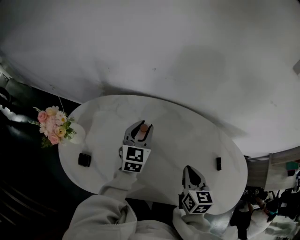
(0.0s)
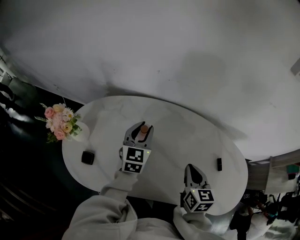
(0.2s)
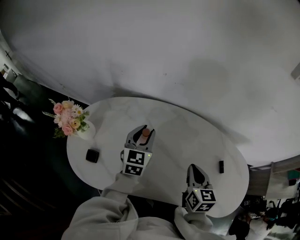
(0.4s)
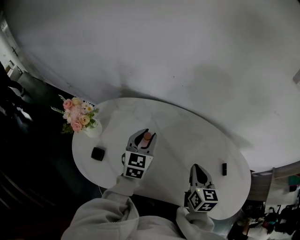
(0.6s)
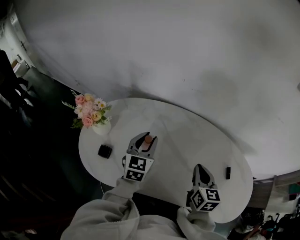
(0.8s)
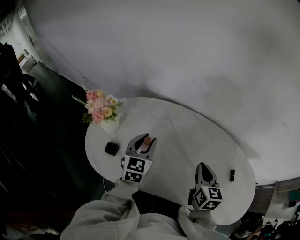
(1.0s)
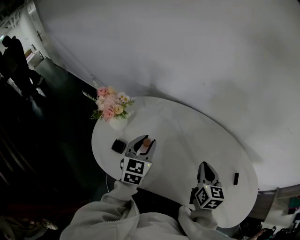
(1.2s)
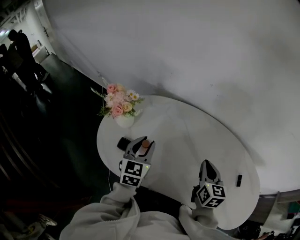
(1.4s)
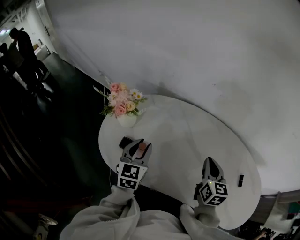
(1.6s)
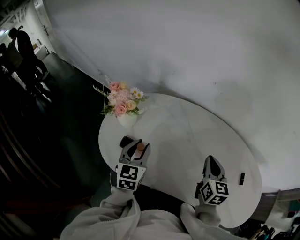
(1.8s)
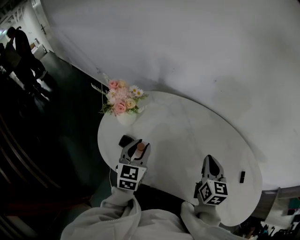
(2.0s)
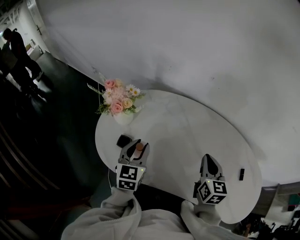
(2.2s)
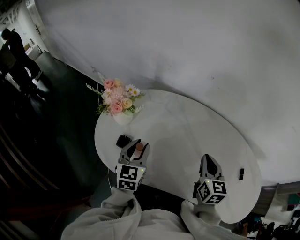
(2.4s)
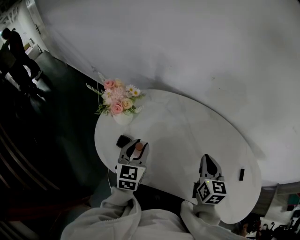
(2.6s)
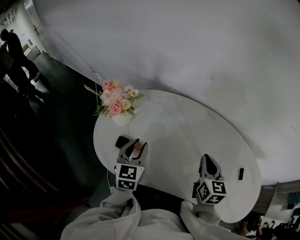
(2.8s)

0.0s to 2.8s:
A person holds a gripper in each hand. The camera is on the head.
0.0s to 1.4s: The right gripper heads to the left, covering roughly 10 cm. The left gripper moves to the left and backward, approximately 25 cm.
1.4s to 2.8s: The grippers move only a little.

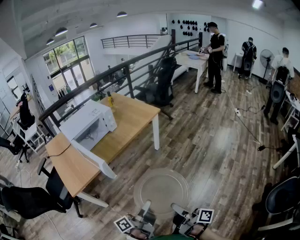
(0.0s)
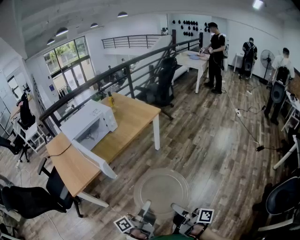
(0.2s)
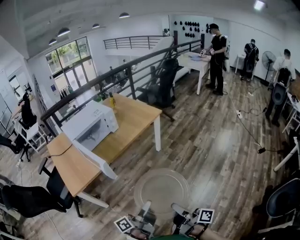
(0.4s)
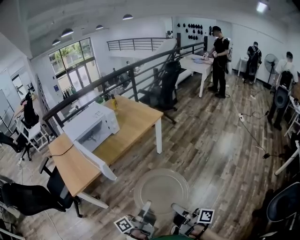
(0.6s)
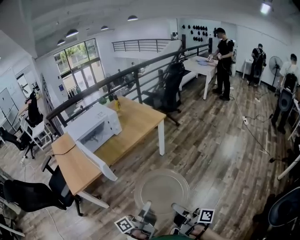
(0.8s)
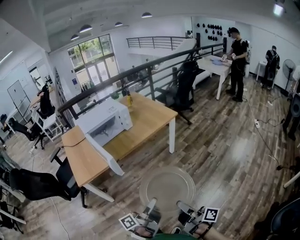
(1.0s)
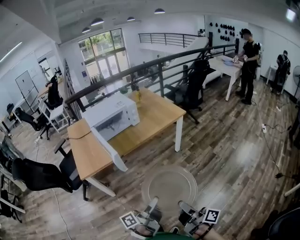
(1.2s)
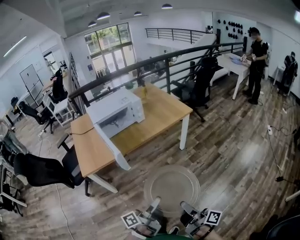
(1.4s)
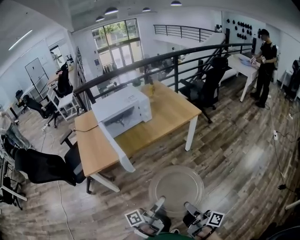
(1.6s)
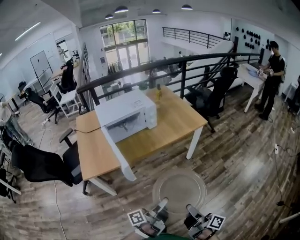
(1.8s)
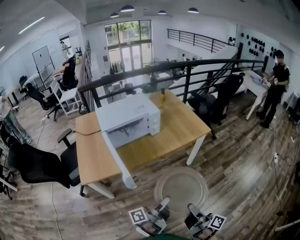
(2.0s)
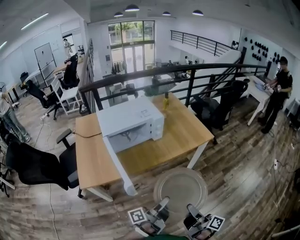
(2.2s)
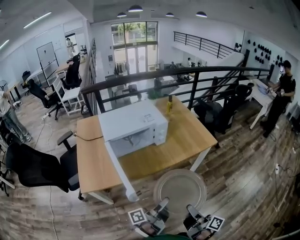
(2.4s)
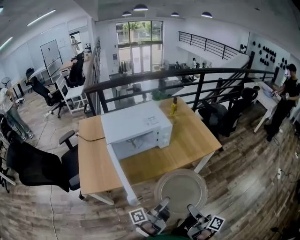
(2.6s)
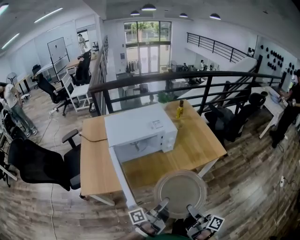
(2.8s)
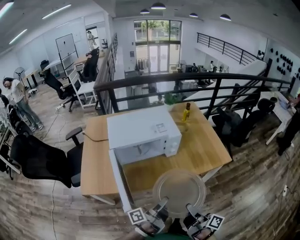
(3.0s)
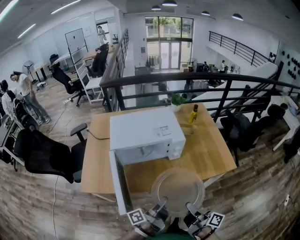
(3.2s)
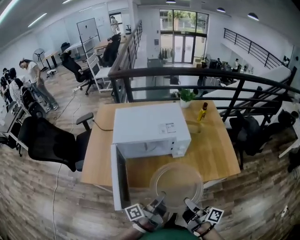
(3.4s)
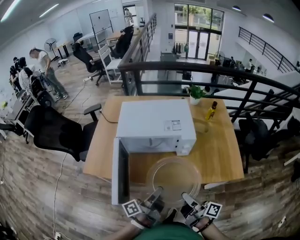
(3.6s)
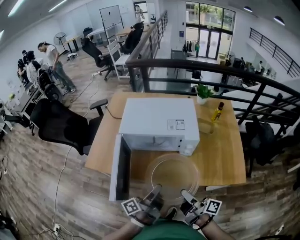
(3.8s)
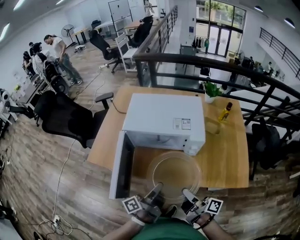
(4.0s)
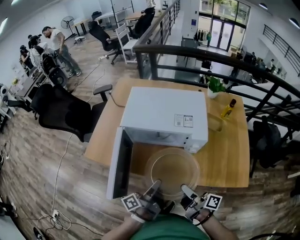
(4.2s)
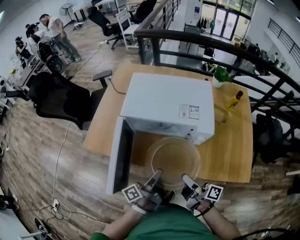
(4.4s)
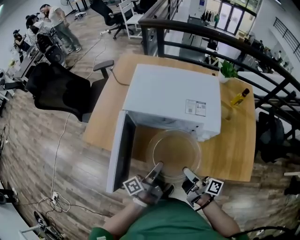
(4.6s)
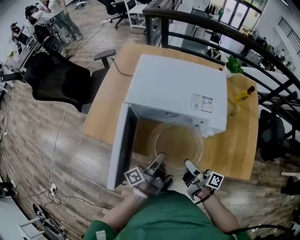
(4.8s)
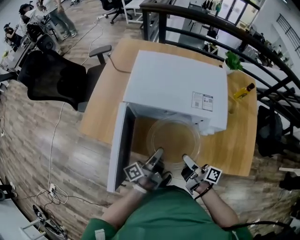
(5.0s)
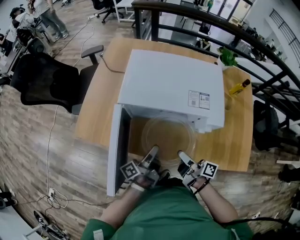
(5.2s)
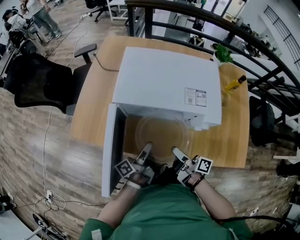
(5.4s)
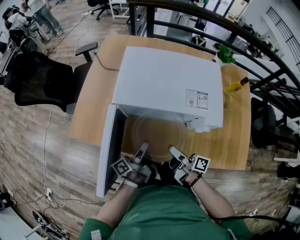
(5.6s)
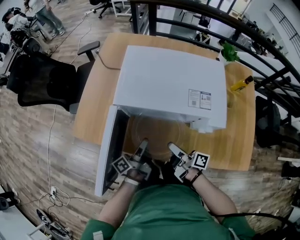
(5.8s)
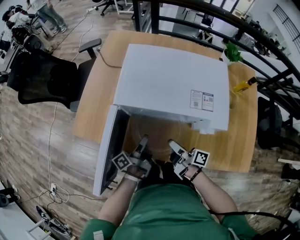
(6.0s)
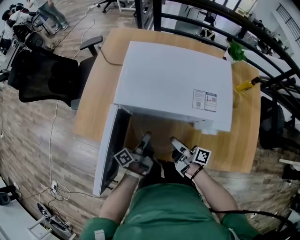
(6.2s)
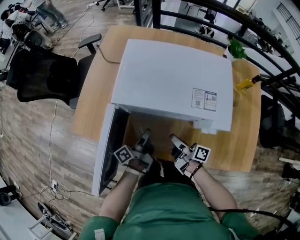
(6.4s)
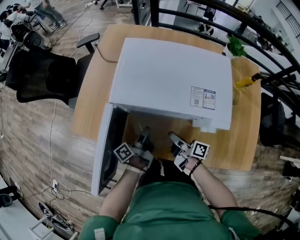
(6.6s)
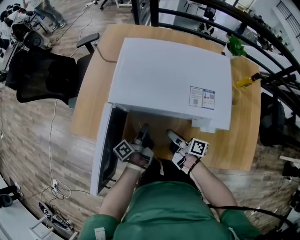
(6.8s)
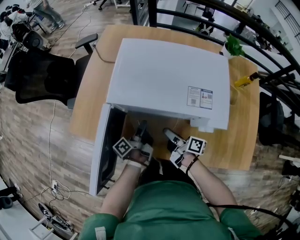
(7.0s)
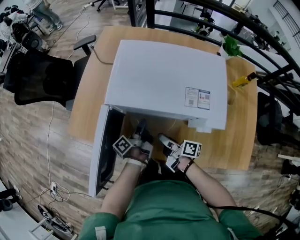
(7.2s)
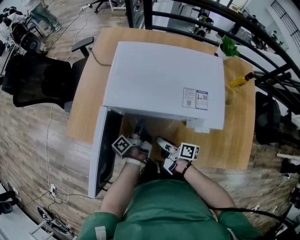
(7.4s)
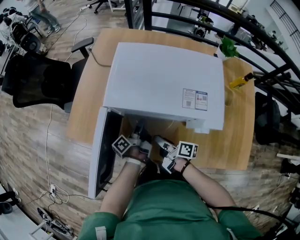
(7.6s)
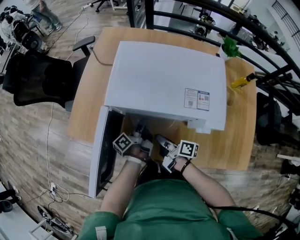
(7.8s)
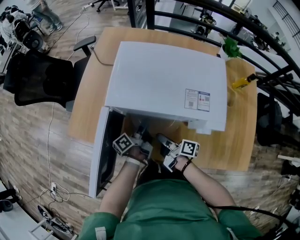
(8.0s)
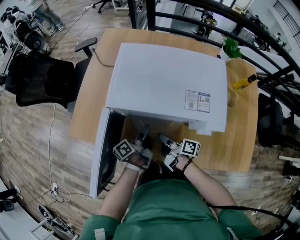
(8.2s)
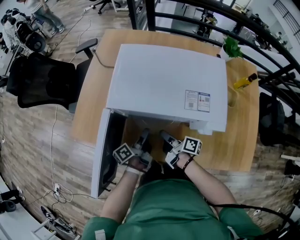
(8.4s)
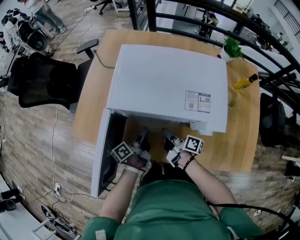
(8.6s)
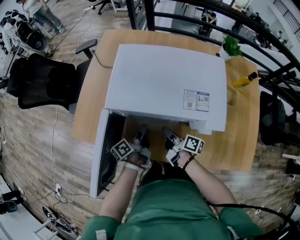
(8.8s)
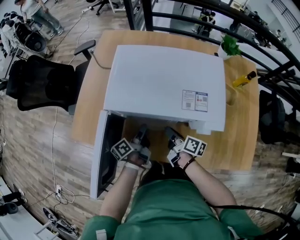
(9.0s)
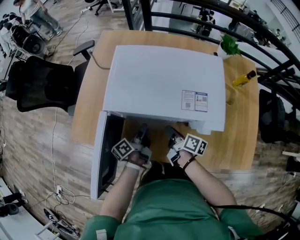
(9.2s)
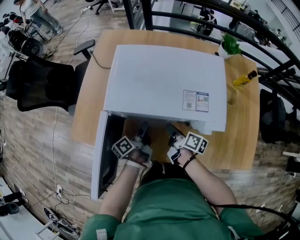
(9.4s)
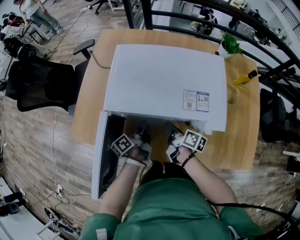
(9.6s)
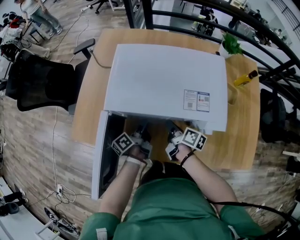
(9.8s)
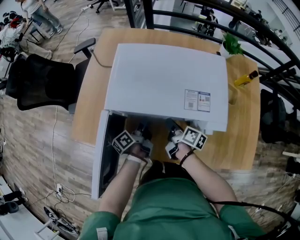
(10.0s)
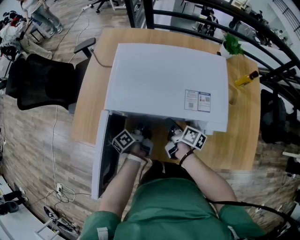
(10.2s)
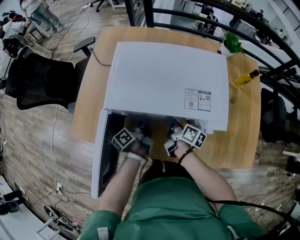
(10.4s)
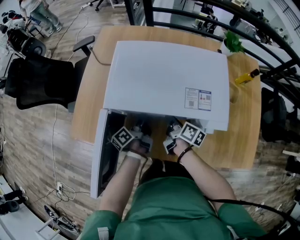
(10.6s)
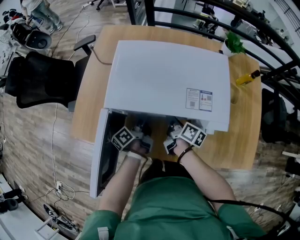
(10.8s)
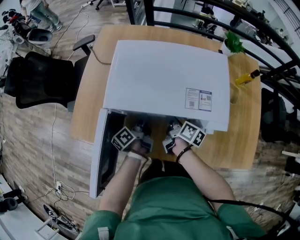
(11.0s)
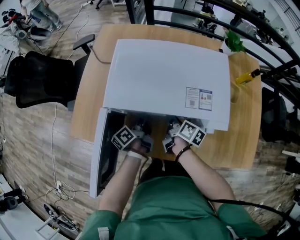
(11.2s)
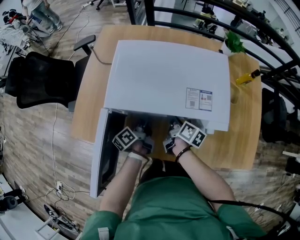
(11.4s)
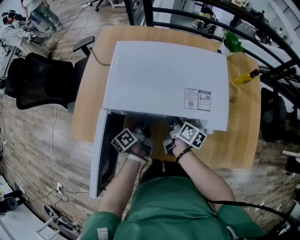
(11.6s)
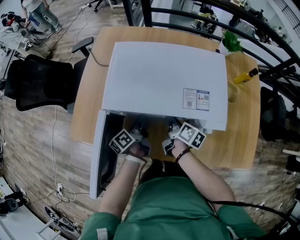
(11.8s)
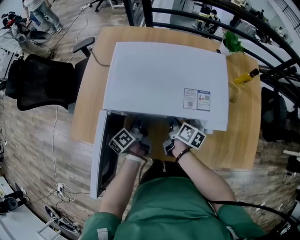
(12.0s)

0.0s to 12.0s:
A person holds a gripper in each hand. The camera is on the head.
0.0s to 1.6s: The right gripper changes place by approximately 10 cm.
1.6s to 3.0s: The right gripper shifts by approximately 40 cm.
3.0s to 4.4s: The right gripper shifts by some 25 cm, and changes its angle by some 40 degrees.
4.4s to 6.0s: The right gripper changes place by approximately 20 cm.
6.0s to 7.6s: The right gripper shifts by about 5 cm.
7.6s to 9.0s: The right gripper ends up roughly 5 cm from where it was.

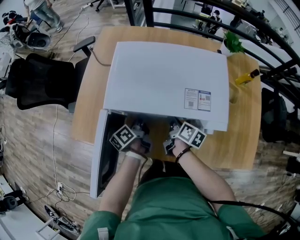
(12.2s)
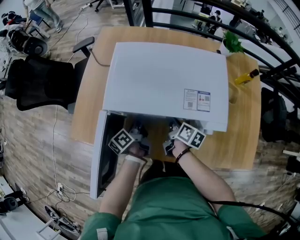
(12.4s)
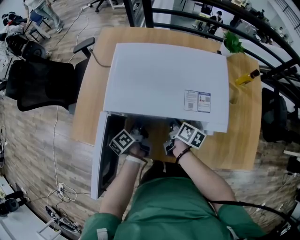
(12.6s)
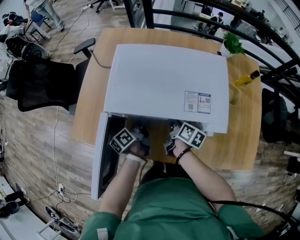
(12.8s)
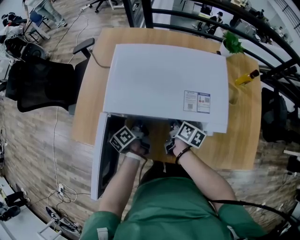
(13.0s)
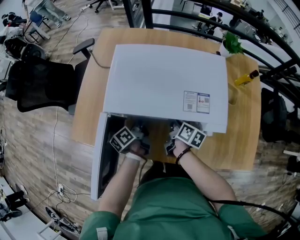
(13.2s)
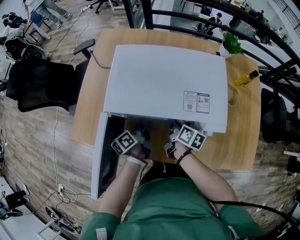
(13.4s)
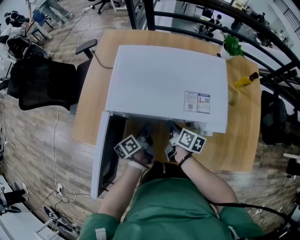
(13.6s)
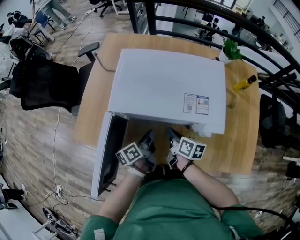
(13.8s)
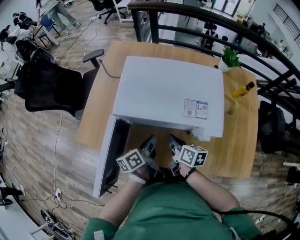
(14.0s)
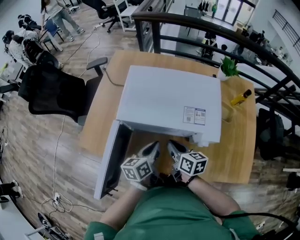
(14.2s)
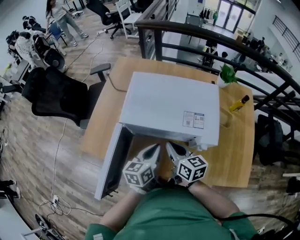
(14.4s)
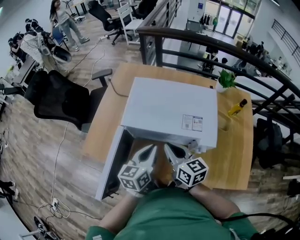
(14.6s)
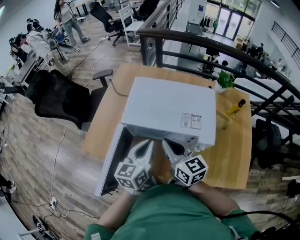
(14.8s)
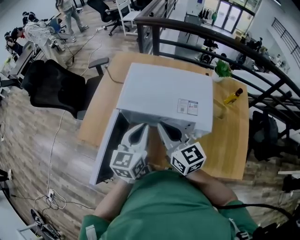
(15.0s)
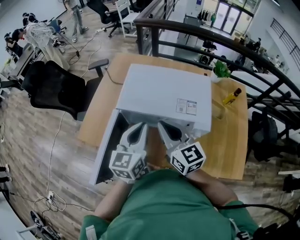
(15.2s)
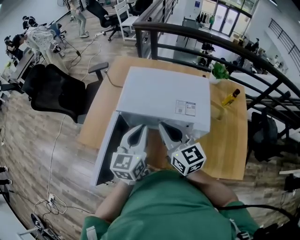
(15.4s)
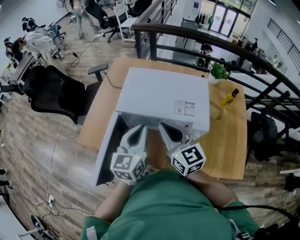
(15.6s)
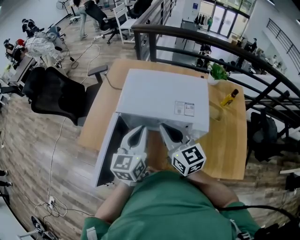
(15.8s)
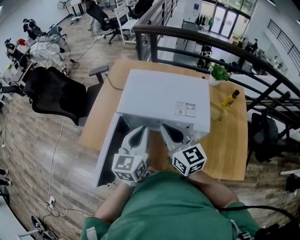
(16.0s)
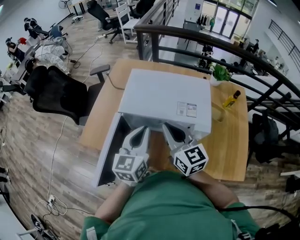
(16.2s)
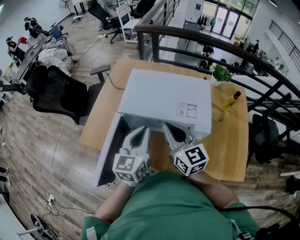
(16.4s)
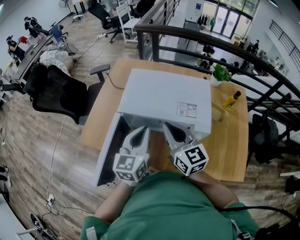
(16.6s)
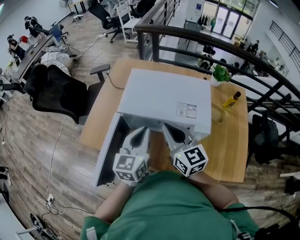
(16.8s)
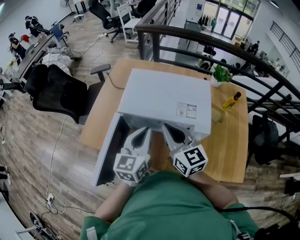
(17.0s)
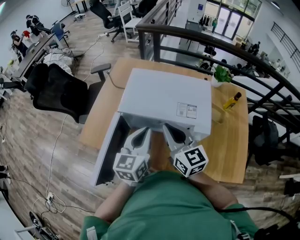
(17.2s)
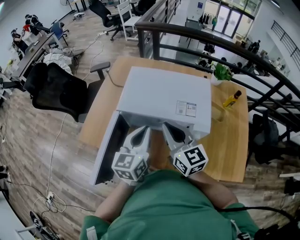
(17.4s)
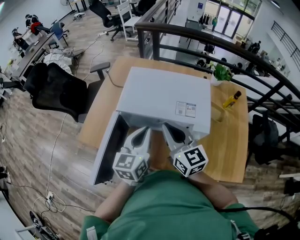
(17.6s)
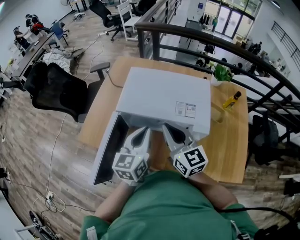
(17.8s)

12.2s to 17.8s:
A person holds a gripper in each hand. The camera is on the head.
13.6s to 15.0s: The right gripper moves upward, some 25 cm, and rolls counterclockwise, seen from behind, by roughly 60 degrees.

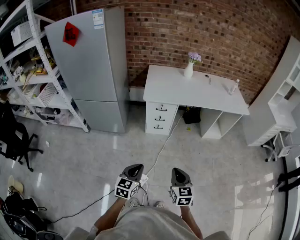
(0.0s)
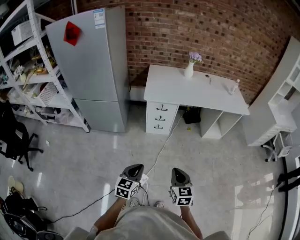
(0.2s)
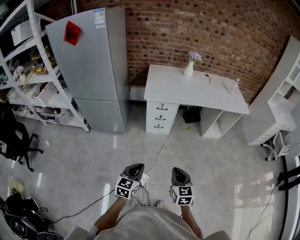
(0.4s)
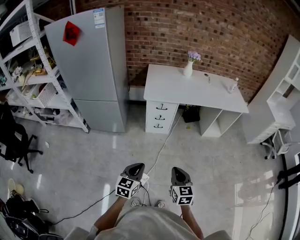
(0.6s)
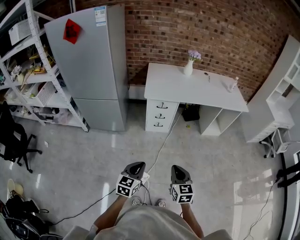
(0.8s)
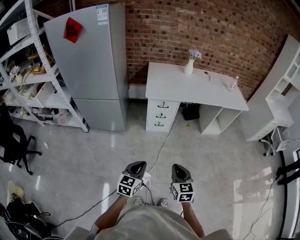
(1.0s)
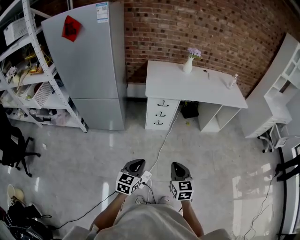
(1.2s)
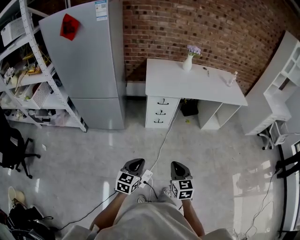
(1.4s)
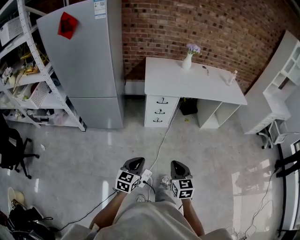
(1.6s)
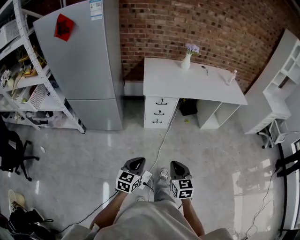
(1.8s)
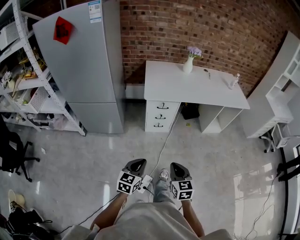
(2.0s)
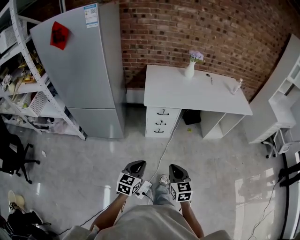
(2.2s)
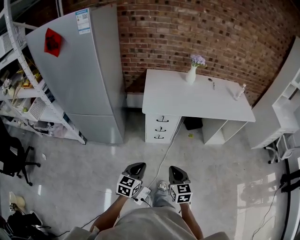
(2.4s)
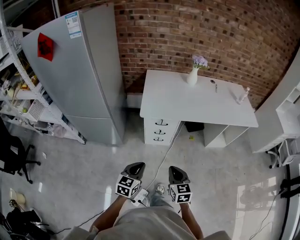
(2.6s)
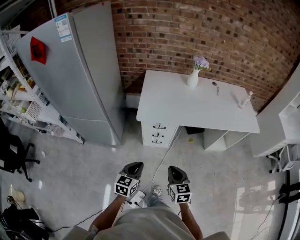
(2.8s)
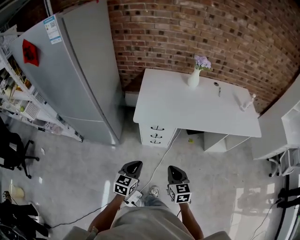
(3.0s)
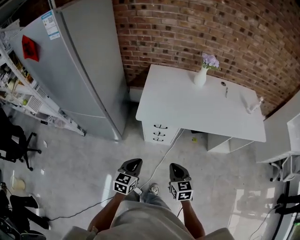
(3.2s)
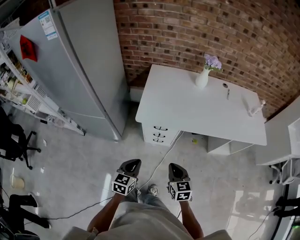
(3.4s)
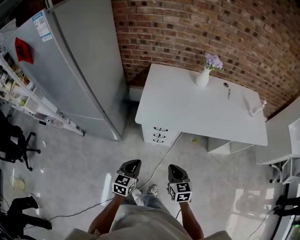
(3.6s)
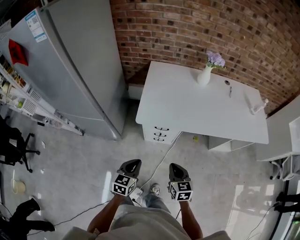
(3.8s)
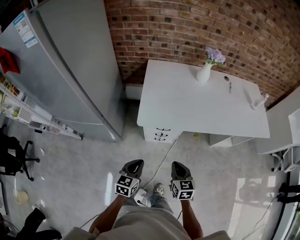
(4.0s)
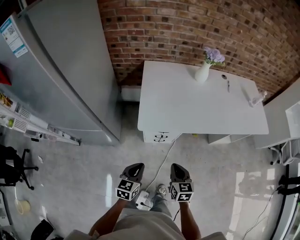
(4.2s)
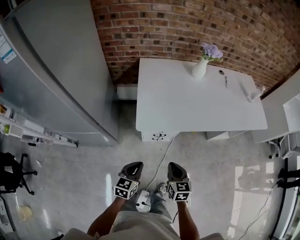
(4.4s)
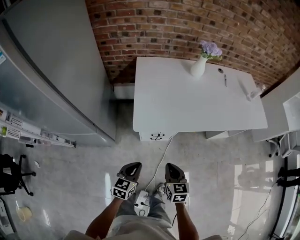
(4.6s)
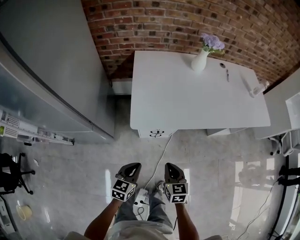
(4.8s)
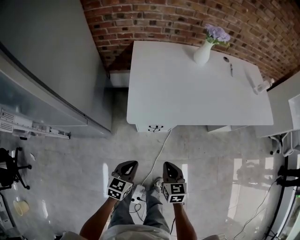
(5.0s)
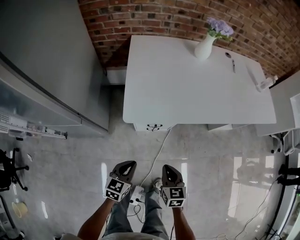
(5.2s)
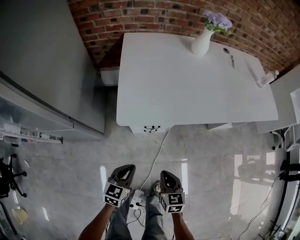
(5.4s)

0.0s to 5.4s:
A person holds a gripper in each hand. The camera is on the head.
0.0s to 1.4s: The two grippers go approximately 10 cm to the left.
1.4s to 2.8s: Both grippers move forward, some 30 cm.
2.8s to 4.0s: The grippers both shift forward by approximately 15 cm.
4.0s to 5.4s: Both grippers travel together downward, approximately 15 cm.
